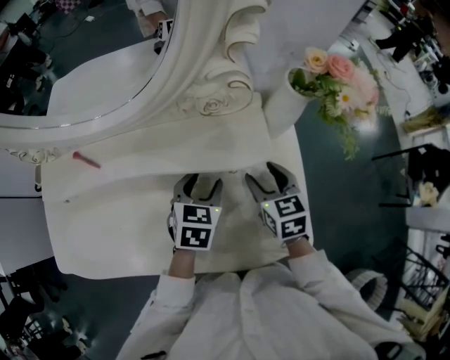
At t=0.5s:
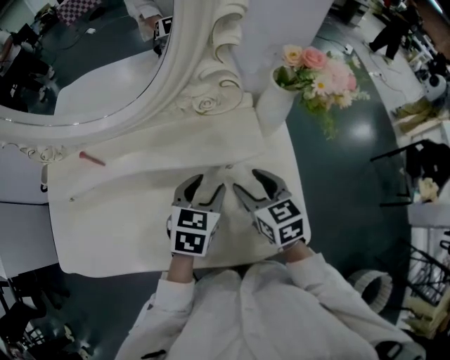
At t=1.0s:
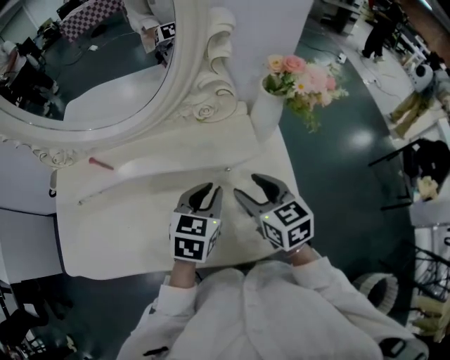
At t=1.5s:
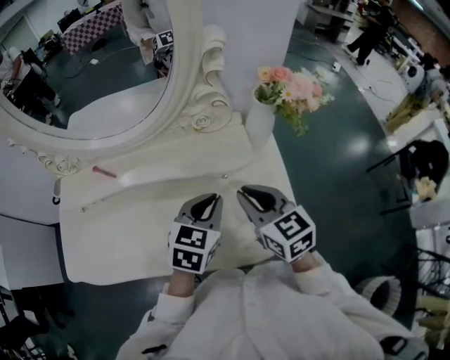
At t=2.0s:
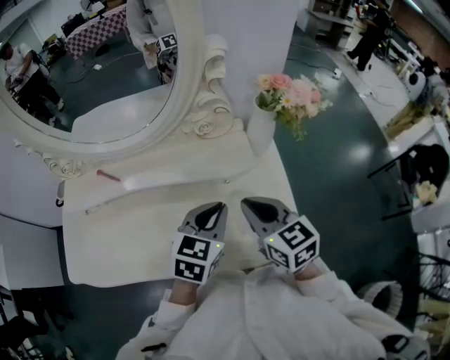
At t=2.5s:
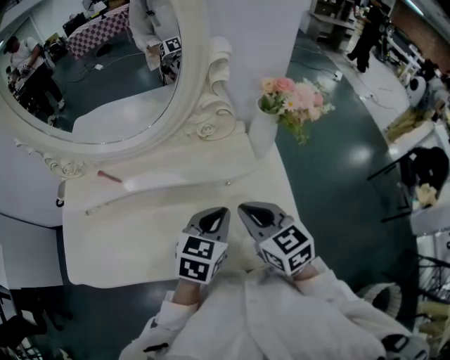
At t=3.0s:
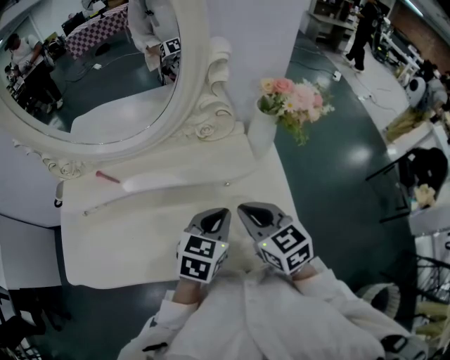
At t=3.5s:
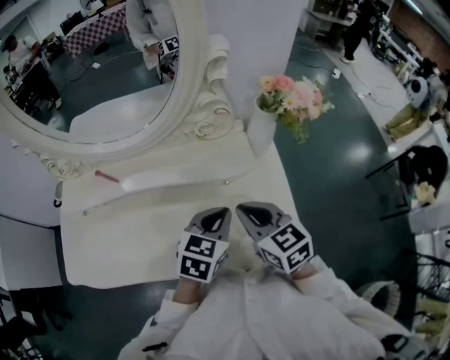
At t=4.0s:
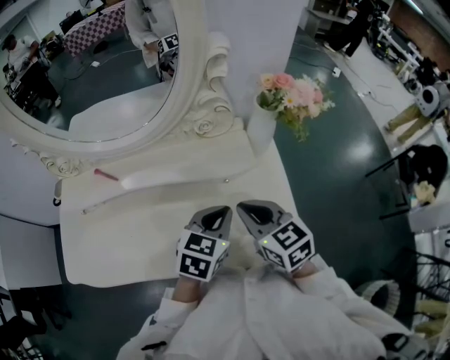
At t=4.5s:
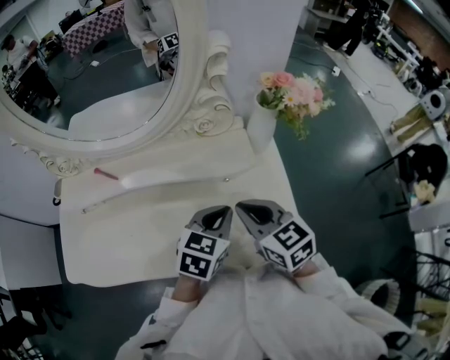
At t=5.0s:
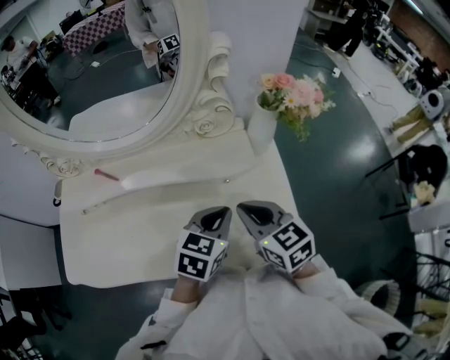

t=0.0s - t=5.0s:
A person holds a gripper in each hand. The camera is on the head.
t=0.0s - t=2.5s: The left gripper is displaced upward and backward by approximately 15 cm, and closes up. Meanwhile the right gripper heads upward, backward and to the left, covering approximately 20 cm, swivels roughly 20 degrees, and closes.
t=2.5s - t=5.0s: The grippers move only a little.

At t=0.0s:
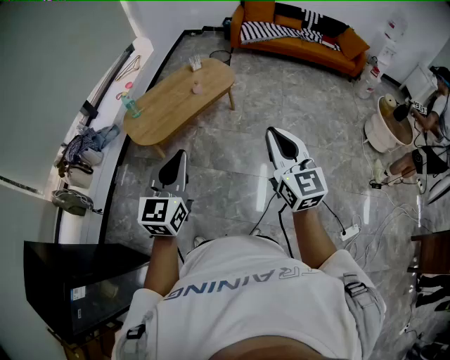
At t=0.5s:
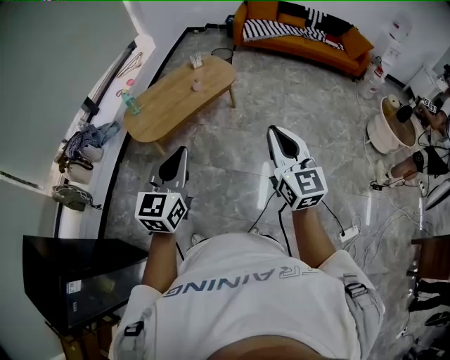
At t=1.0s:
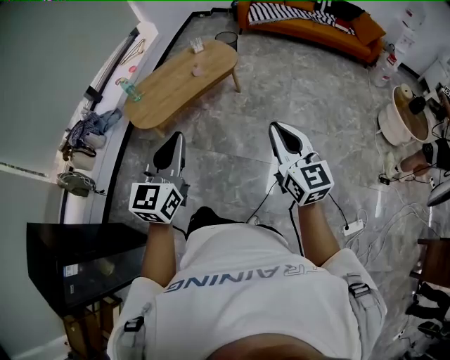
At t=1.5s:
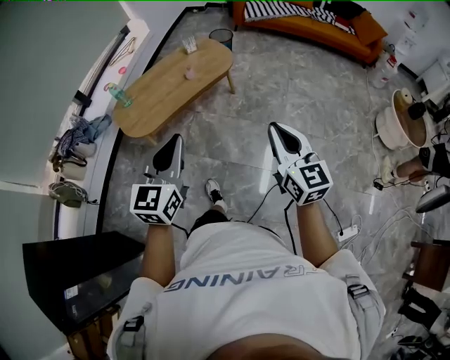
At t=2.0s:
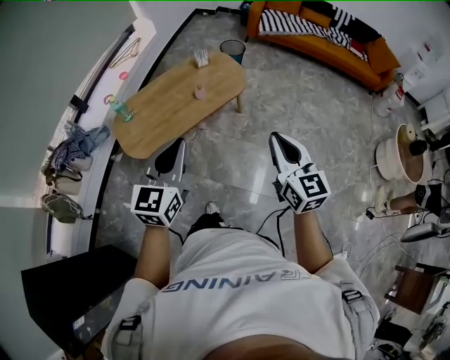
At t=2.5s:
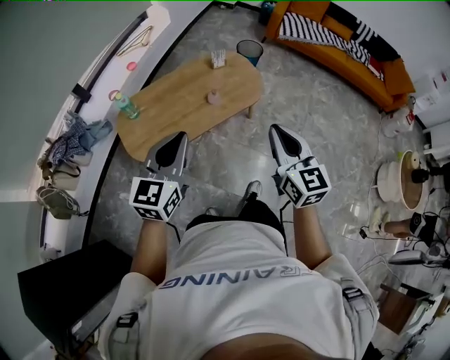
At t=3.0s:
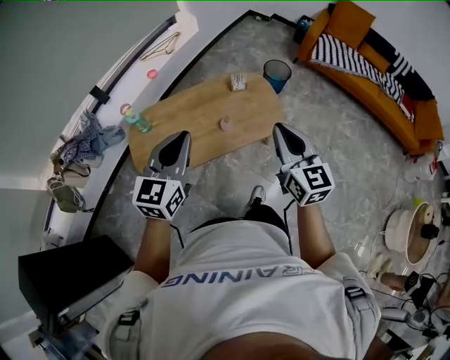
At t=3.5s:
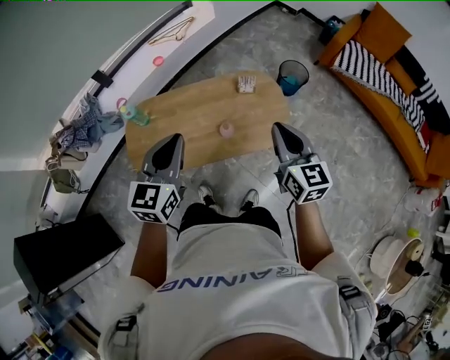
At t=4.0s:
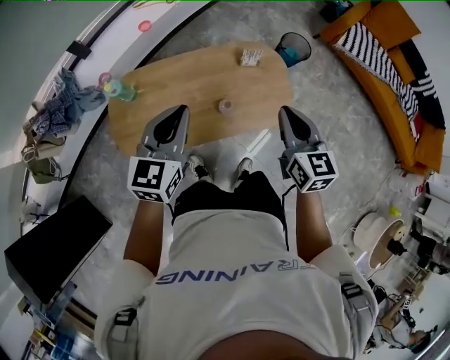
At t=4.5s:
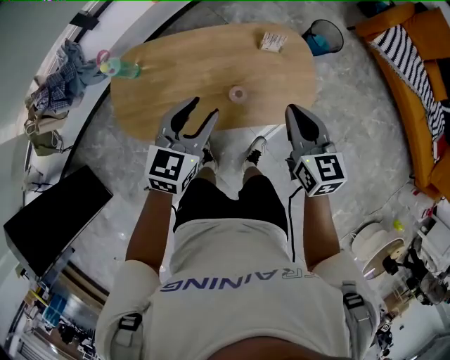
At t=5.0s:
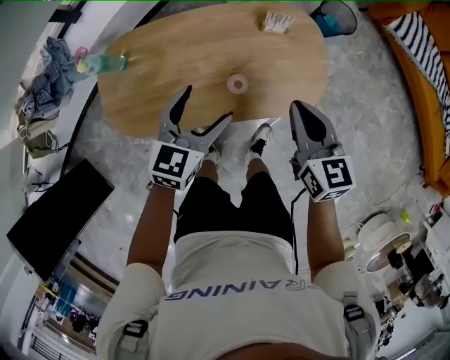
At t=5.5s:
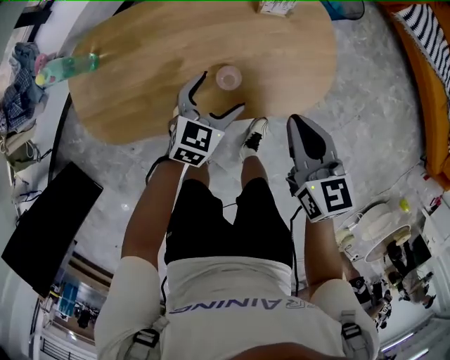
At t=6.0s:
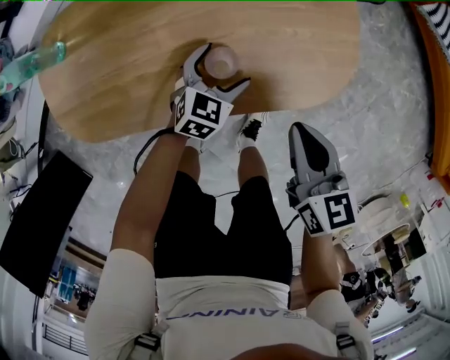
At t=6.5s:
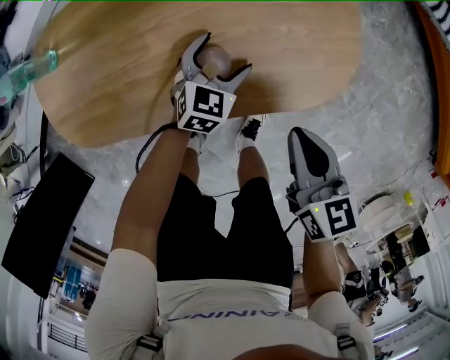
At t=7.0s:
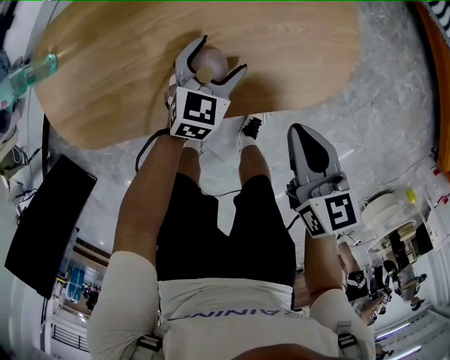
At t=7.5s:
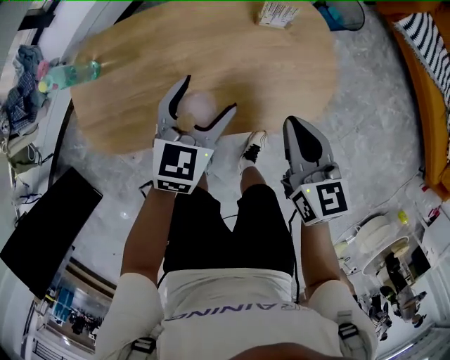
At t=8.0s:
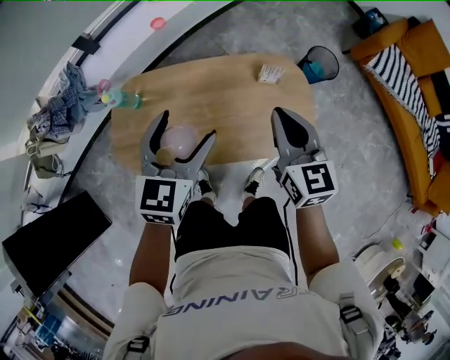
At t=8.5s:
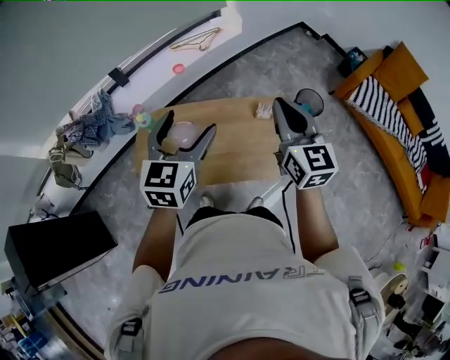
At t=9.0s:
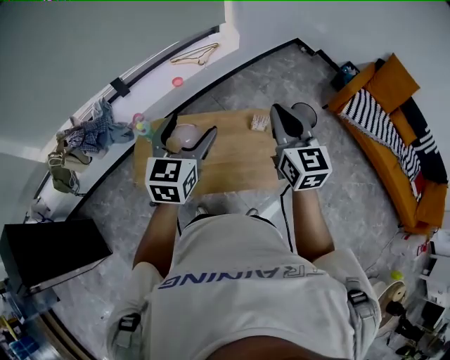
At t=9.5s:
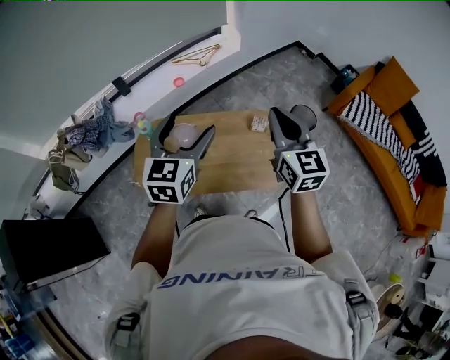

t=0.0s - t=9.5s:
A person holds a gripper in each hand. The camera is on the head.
t=0.0s - t=2.0s: The grippers both shift forward by some 30 cm.
t=2.0s - t=4.0s: Both grippers are carried forward, approximately 50 cm. The right gripper changes its angle by about 30 degrees; the left gripper changes its angle by approximately 20 degrees.
t=4.0s - t=5.5s: The right gripper goes roughly 25 cm downward. Meanwhile the left gripper goes roughly 40 cm downward, rotates approximately 30 degrees, and opens up.
t=5.5s - t=7.5s: The left gripper travels upward by roughly 10 cm; the right gripper goes downward and returns, roughly 10 cm each way.
t=7.5s - t=9.5s: Both grippers travel together upward, about 40 cm. The right gripper turns by some 30 degrees; the left gripper turns by roughly 30 degrees.

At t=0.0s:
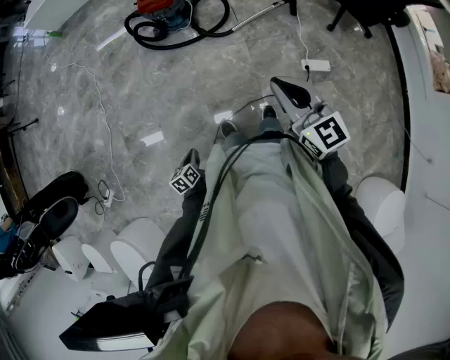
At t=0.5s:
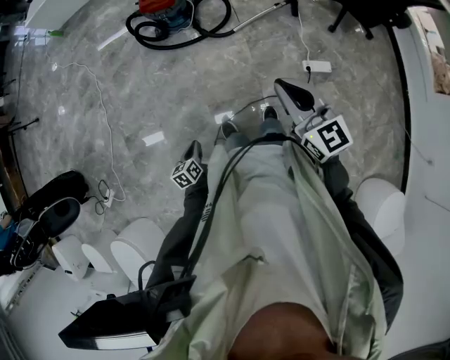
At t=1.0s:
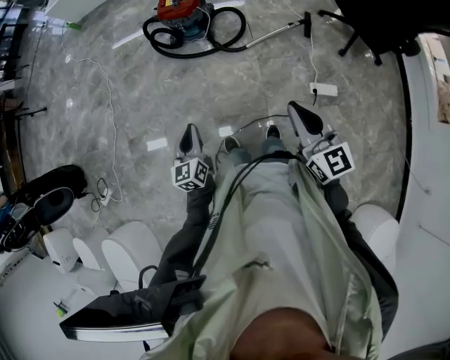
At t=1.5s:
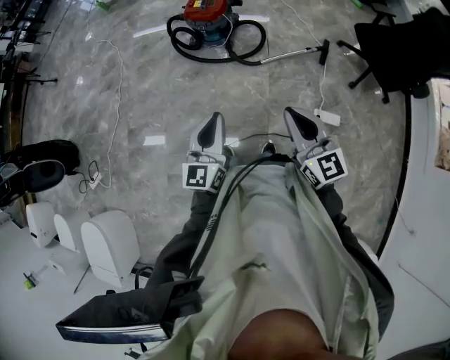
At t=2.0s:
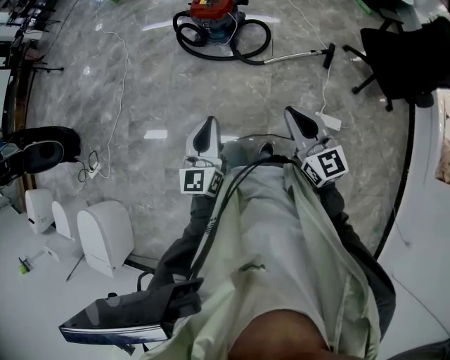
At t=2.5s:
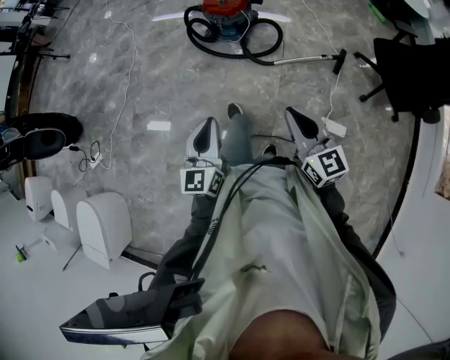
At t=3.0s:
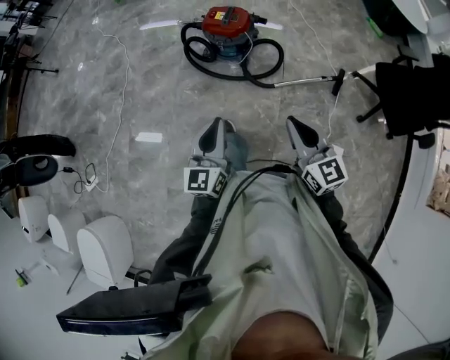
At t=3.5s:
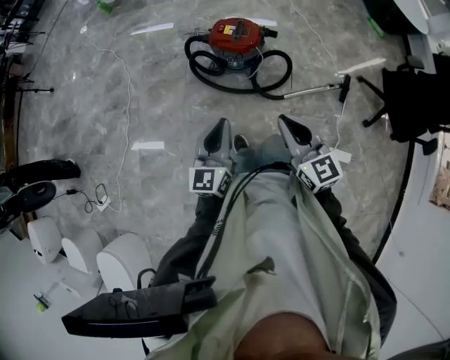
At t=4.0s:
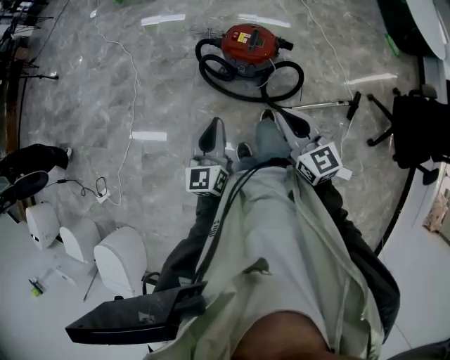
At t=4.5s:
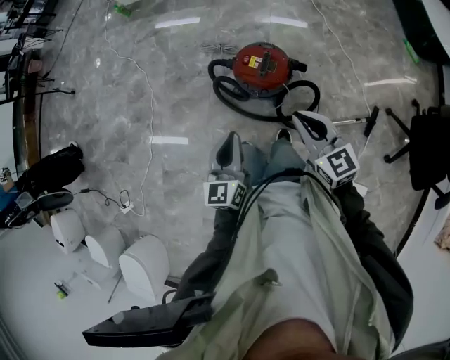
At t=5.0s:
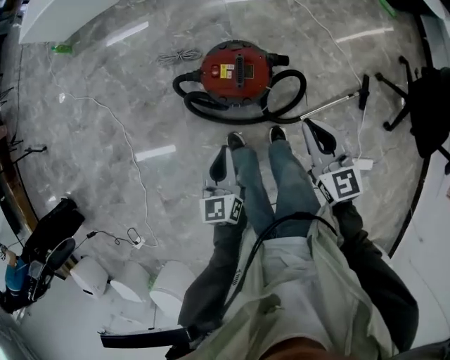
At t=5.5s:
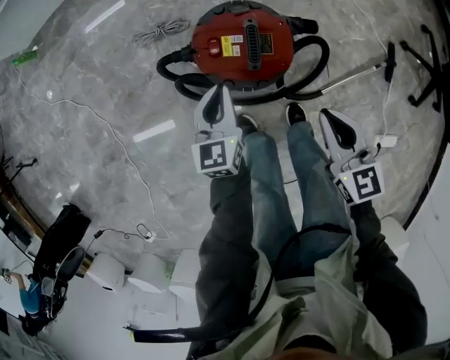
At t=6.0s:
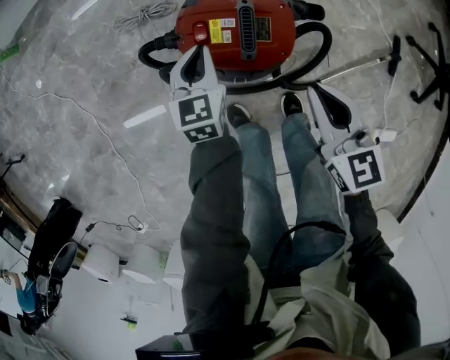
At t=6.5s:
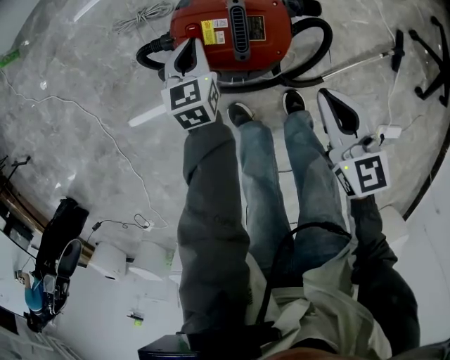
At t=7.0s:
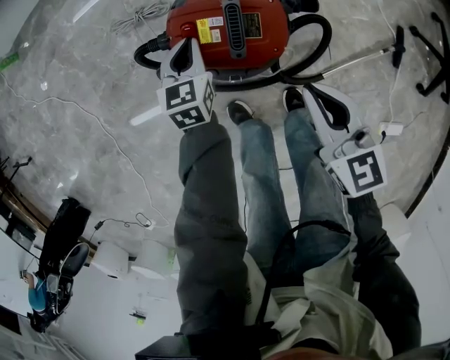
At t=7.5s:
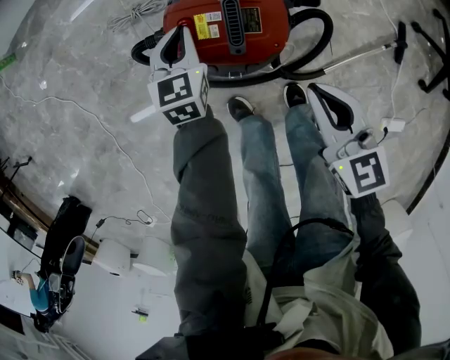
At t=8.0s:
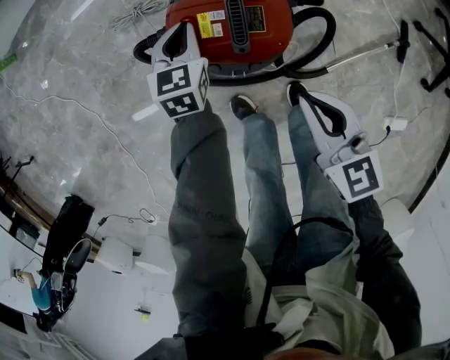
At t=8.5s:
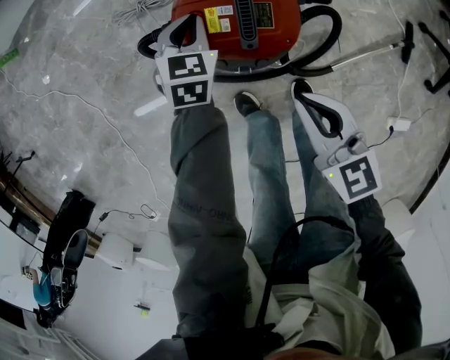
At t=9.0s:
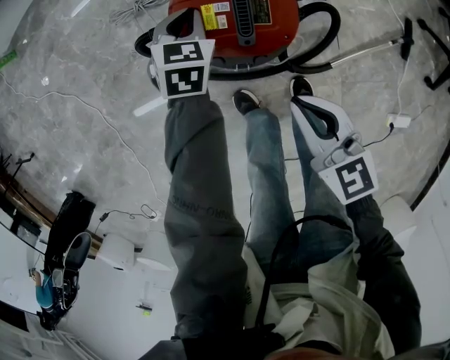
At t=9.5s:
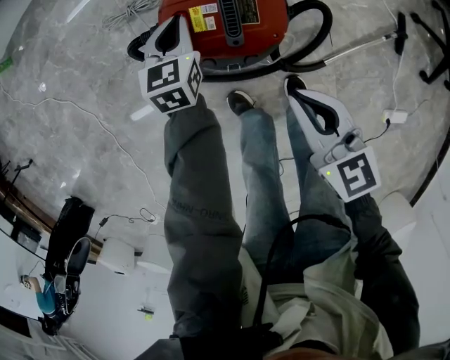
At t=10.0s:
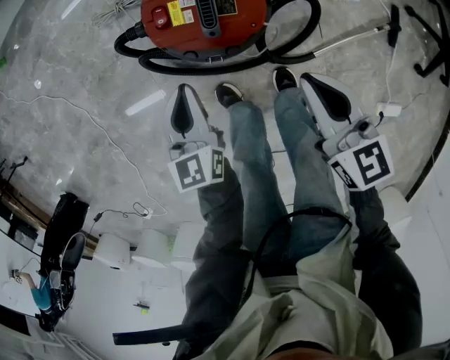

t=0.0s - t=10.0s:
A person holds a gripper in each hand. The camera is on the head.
t=0.0s - t=2.0s: The right gripper is displaced to the right by approximately 5 cm; the left gripper is displaced upward and to the right by roughly 40 cm, and angles its fingers upward, by approximately 50 degrees.
t=2.0s - t=4.0s: Both grippers are carried forward, approximately 50 cm.
t=4.0s - t=6.0s: The grippers both shift downward and forward by about 50 cm. The right gripper swivels approximately 30 degrees, while the left gripper changes its angle by some 40 degrees.
t=6.0s - t=8.0s: The left gripper changes place by roughly 5 cm.
t=8.0s - t=10.0s: The left gripper goes roughly 20 cm backward and upward, and changes its angle by about 20 degrees, while the right gripper ends up approximately 5 cm from where it was.

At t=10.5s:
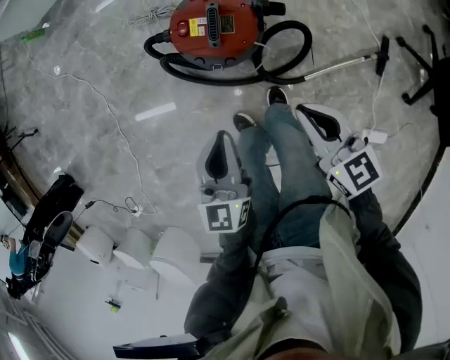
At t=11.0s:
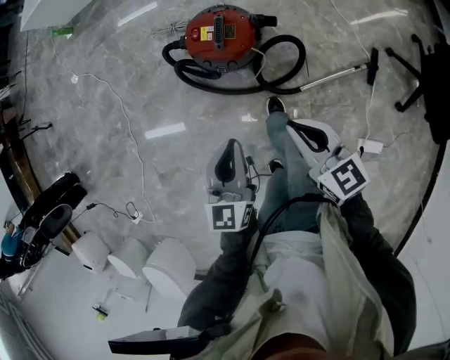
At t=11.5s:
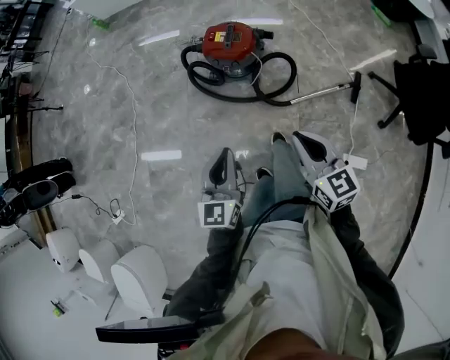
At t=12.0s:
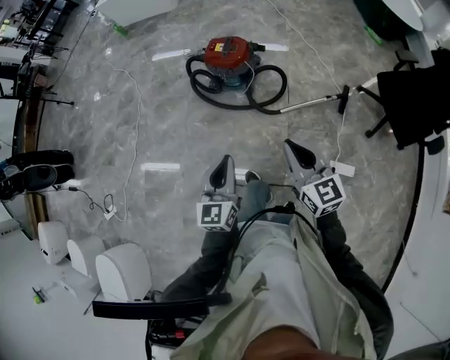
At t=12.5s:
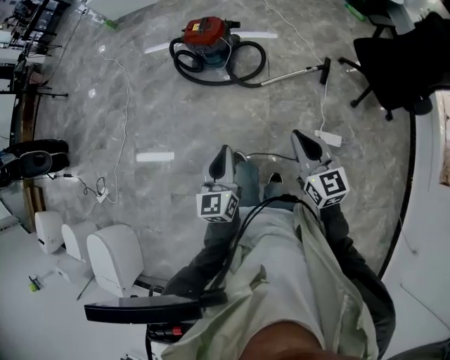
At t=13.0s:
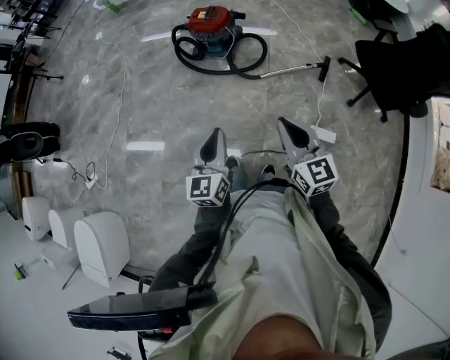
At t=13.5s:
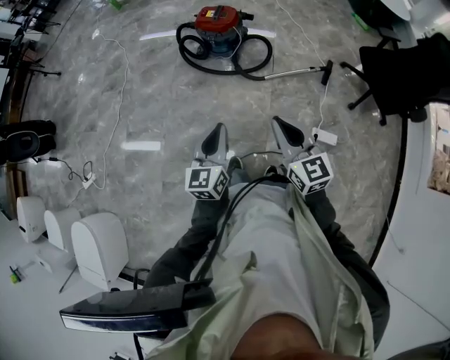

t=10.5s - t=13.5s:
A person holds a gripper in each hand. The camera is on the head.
t=10.5s - t=12.0s: The two grippers travel together, backward, approximately 40 cm. Both grippers move upward, about 20 cm. The right gripper rotates approximately 20 degrees.
t=12.0s - t=13.5s: The two grippers go about 15 cm backward.
